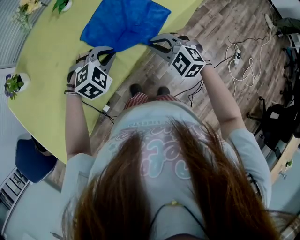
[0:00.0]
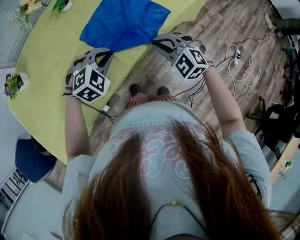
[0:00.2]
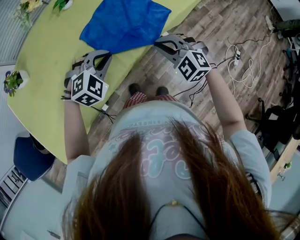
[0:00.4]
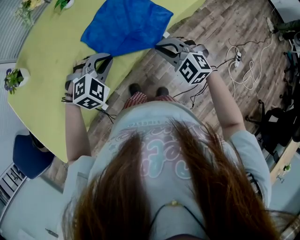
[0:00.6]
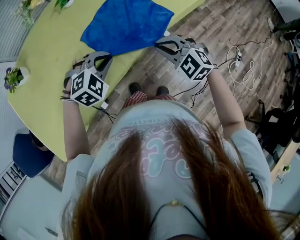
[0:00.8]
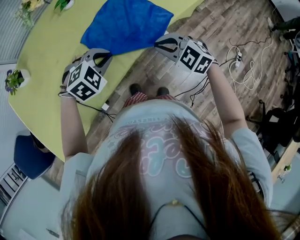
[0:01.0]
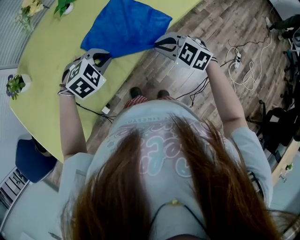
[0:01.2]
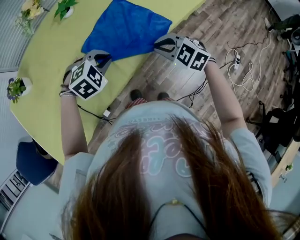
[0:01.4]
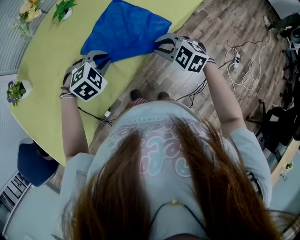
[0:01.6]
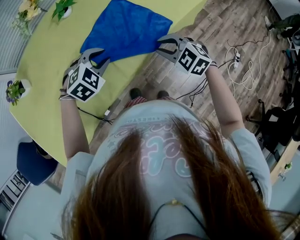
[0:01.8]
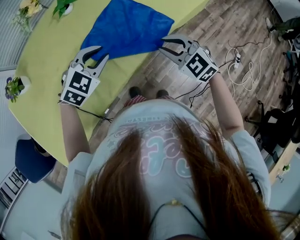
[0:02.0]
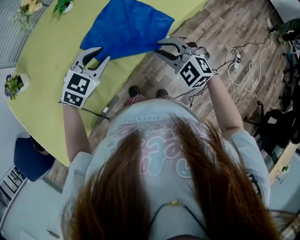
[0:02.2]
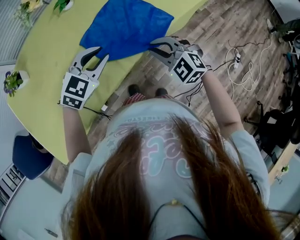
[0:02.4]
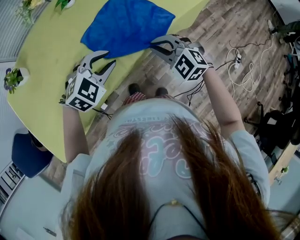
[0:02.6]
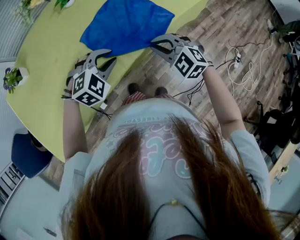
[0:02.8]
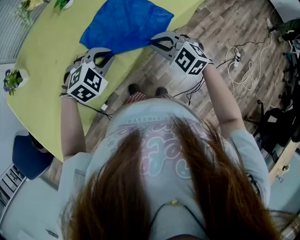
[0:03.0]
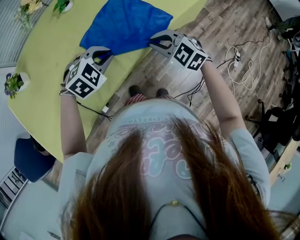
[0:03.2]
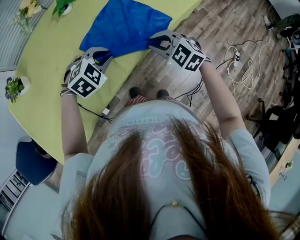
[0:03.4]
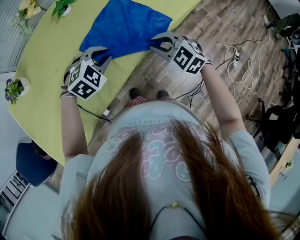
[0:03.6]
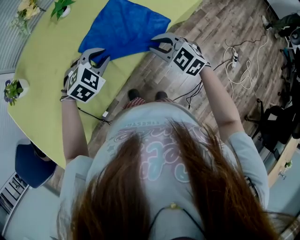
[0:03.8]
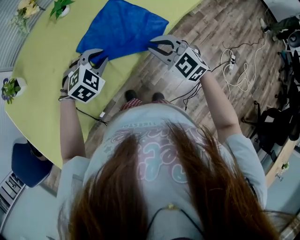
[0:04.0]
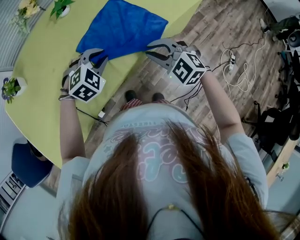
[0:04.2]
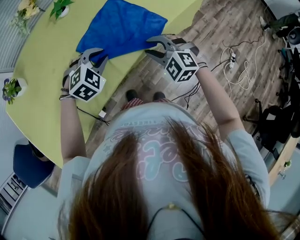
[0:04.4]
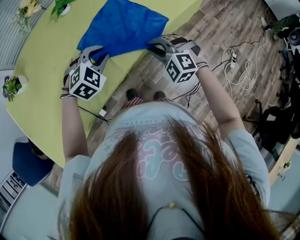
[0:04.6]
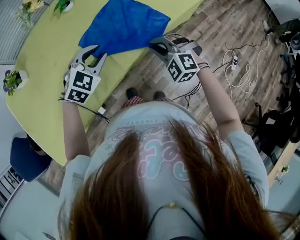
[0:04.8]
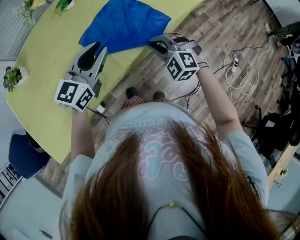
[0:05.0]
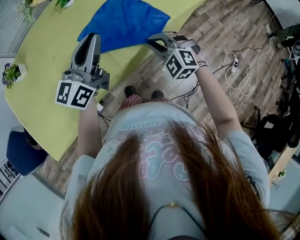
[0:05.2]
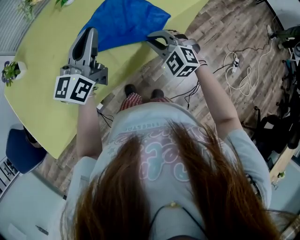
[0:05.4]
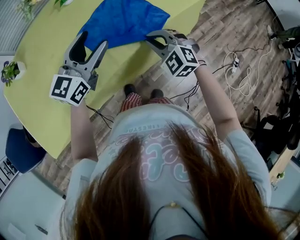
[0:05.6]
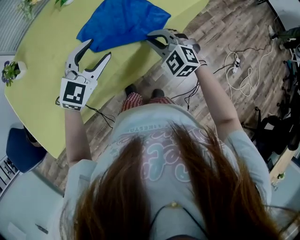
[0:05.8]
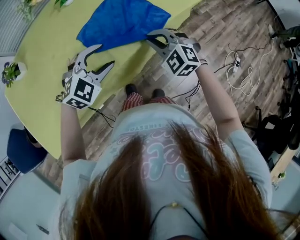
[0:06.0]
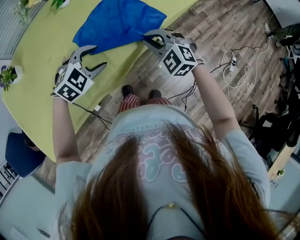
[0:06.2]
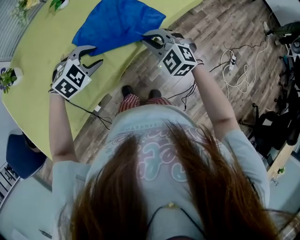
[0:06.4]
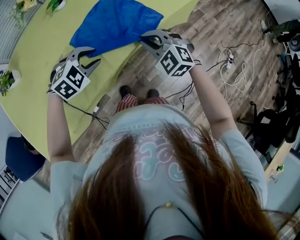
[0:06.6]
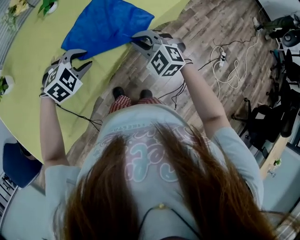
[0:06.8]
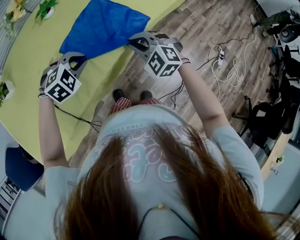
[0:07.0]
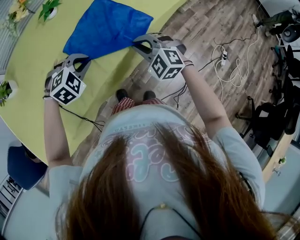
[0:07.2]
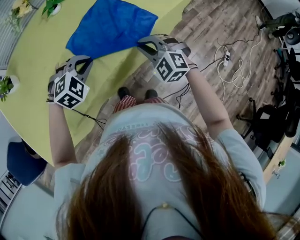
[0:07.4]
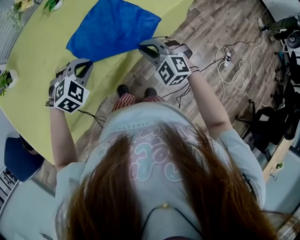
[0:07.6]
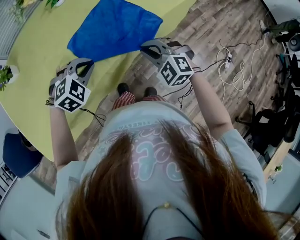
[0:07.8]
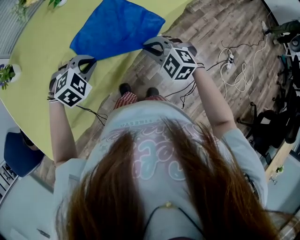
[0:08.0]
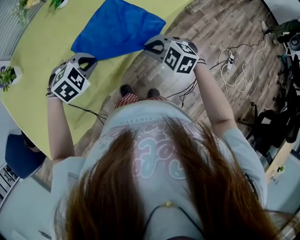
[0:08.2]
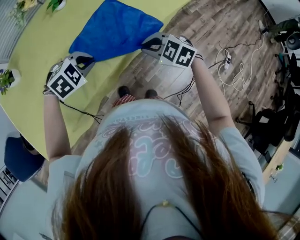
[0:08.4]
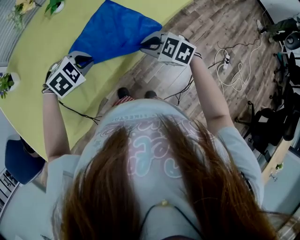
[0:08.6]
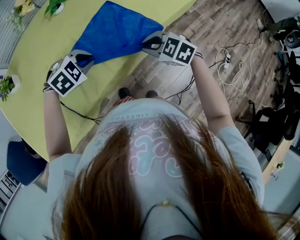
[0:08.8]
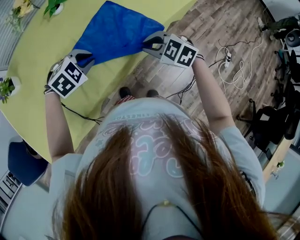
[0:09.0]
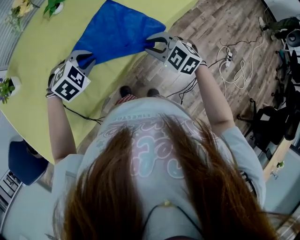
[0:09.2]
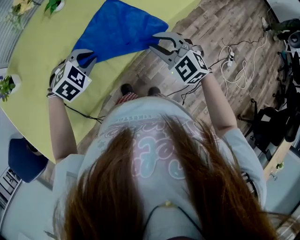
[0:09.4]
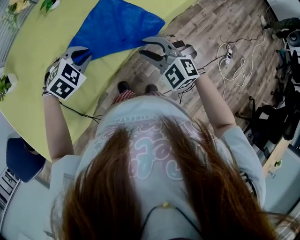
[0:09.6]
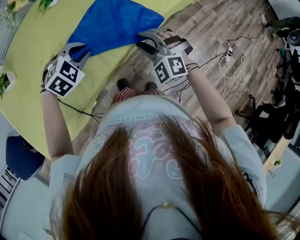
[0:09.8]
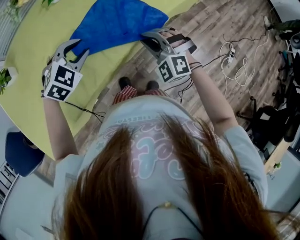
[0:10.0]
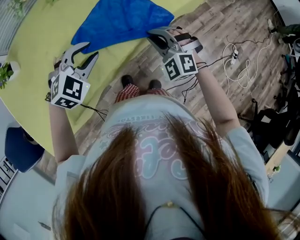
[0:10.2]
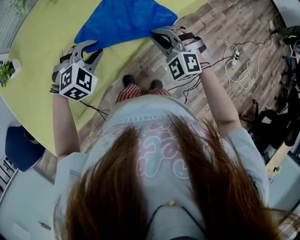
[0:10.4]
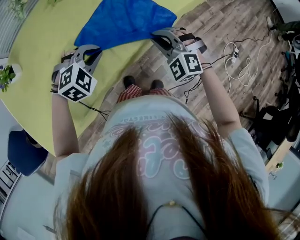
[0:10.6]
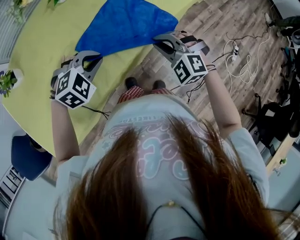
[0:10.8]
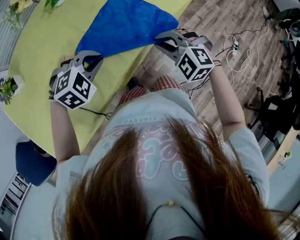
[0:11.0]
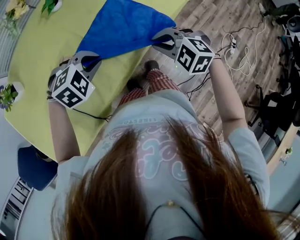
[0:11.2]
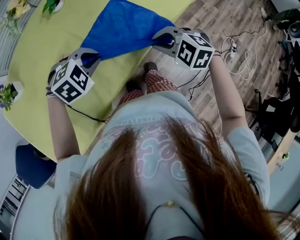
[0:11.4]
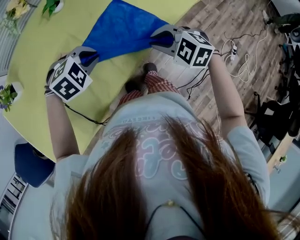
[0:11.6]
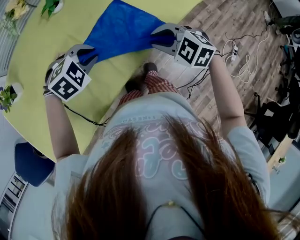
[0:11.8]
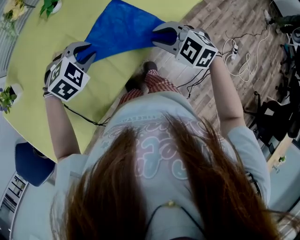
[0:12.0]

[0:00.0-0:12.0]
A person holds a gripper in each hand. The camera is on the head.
0:00.0 to 0:01.6: The grippers move only a little.
0:03.0 to 0:04.4: The right gripper opens up.
0:04.4 to 0:06.0: The right gripper closes. The left gripper goes roughly 5 cm backward, reaches some 15 cm upward, then returns, and opens up.
0:06.0 to 0:07.6: The left gripper shifts by some 5 cm, and closes.
0:07.6 to 0:09.0: The right gripper swivels approximately 30 degrees.
0:09.0 to 0:10.4: The right gripper changes its angle by about 40 degrees, and opens and closes again.
0:10.4 to 0:12.0: The left gripper goes roughly 5 cm forward. Meanwhile the right gripper swivels approximately 30 degrees.

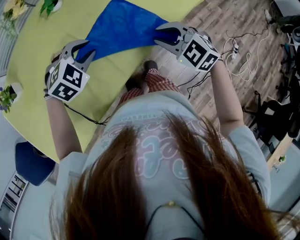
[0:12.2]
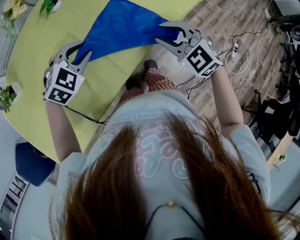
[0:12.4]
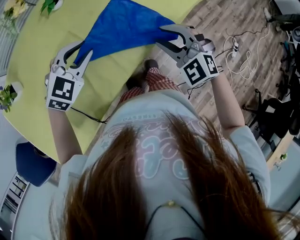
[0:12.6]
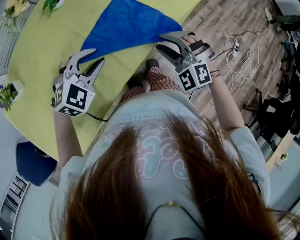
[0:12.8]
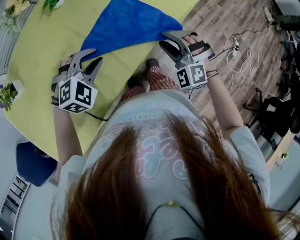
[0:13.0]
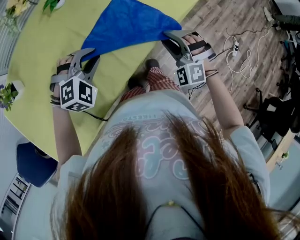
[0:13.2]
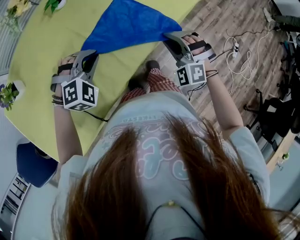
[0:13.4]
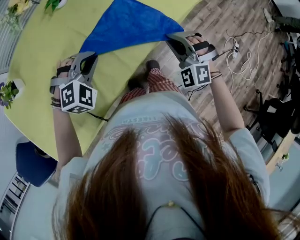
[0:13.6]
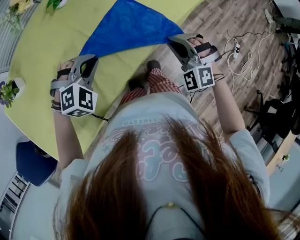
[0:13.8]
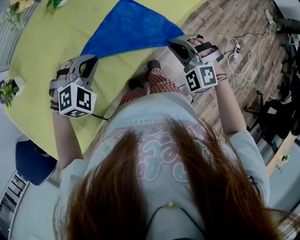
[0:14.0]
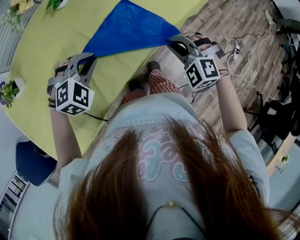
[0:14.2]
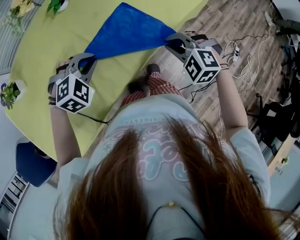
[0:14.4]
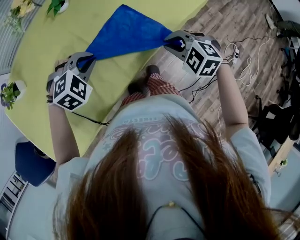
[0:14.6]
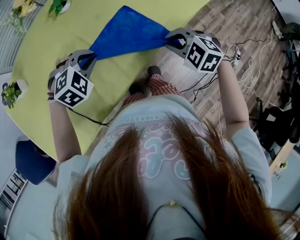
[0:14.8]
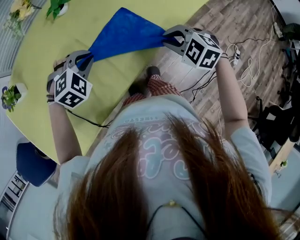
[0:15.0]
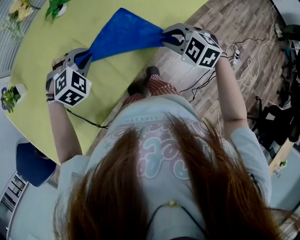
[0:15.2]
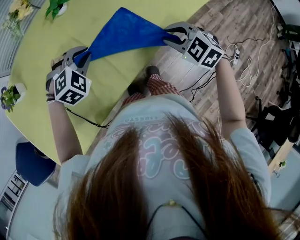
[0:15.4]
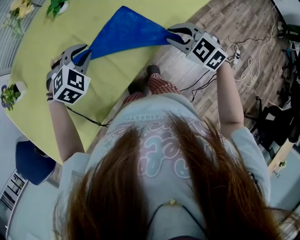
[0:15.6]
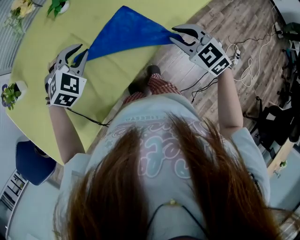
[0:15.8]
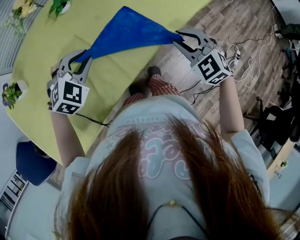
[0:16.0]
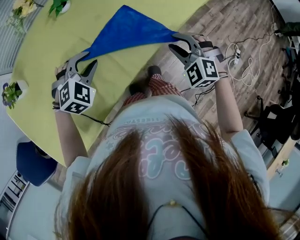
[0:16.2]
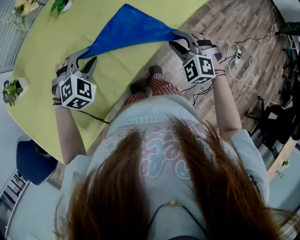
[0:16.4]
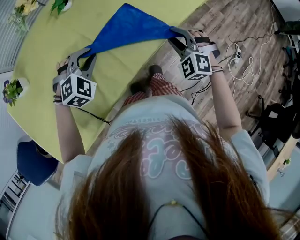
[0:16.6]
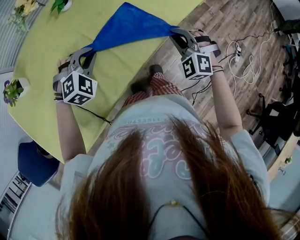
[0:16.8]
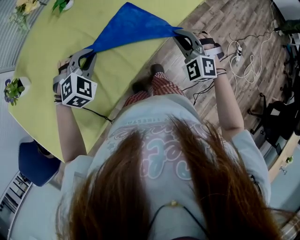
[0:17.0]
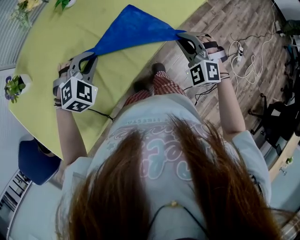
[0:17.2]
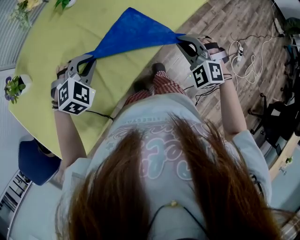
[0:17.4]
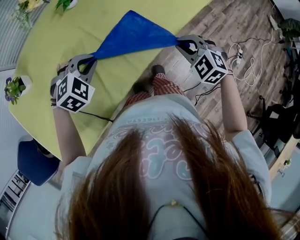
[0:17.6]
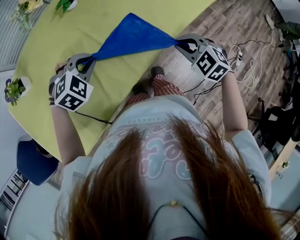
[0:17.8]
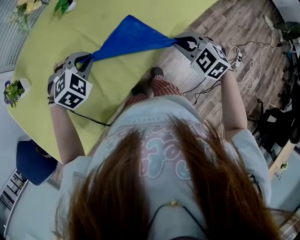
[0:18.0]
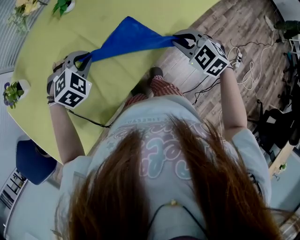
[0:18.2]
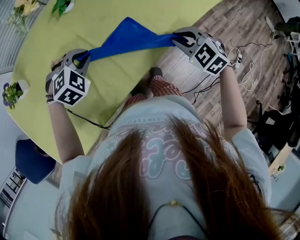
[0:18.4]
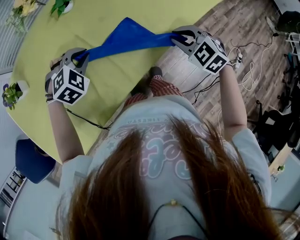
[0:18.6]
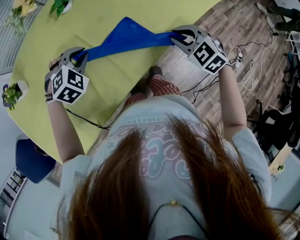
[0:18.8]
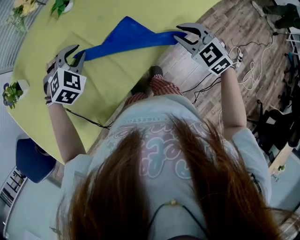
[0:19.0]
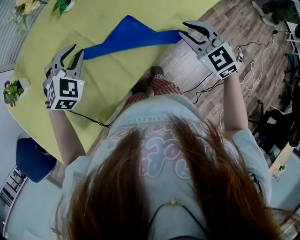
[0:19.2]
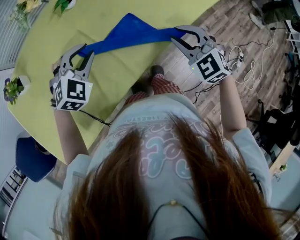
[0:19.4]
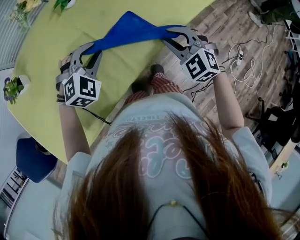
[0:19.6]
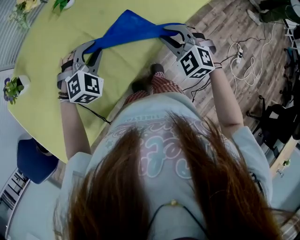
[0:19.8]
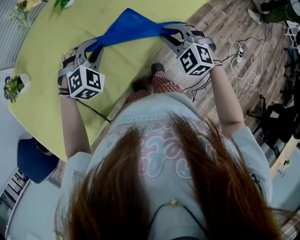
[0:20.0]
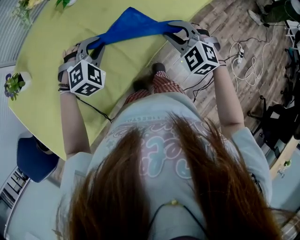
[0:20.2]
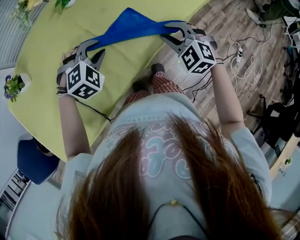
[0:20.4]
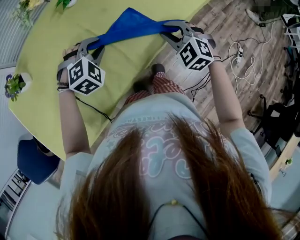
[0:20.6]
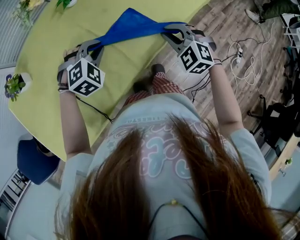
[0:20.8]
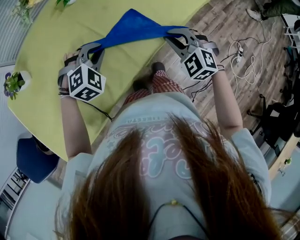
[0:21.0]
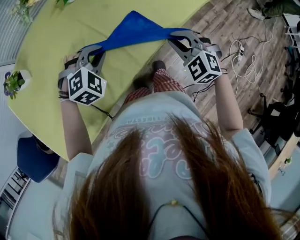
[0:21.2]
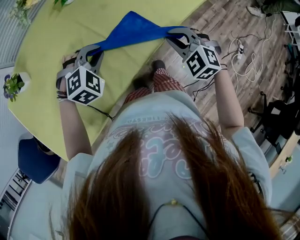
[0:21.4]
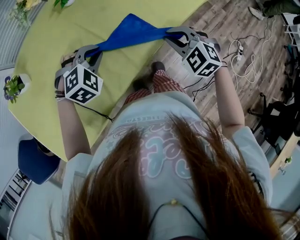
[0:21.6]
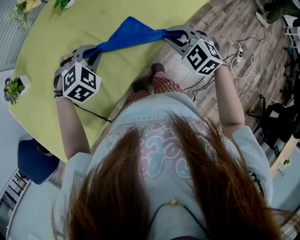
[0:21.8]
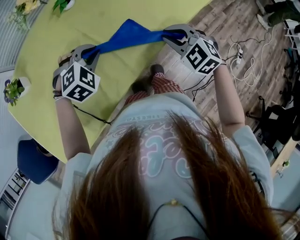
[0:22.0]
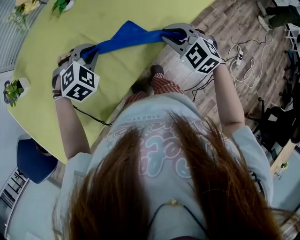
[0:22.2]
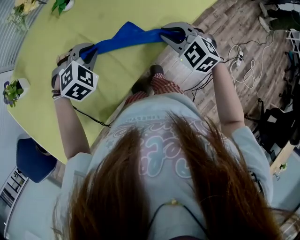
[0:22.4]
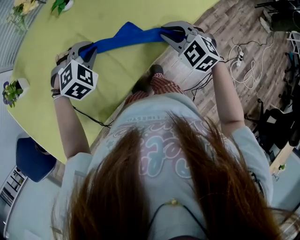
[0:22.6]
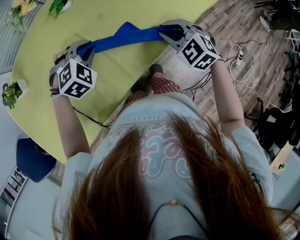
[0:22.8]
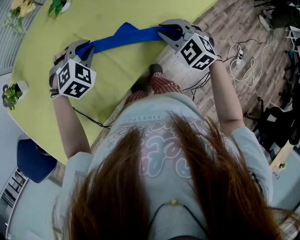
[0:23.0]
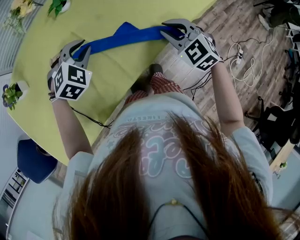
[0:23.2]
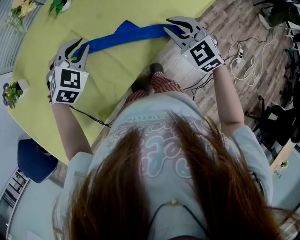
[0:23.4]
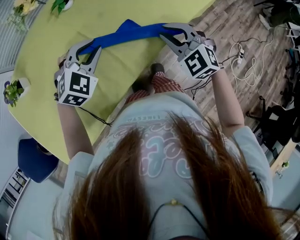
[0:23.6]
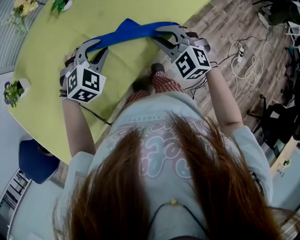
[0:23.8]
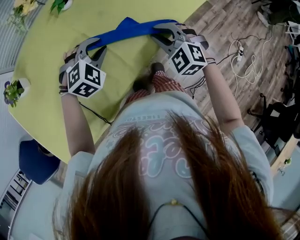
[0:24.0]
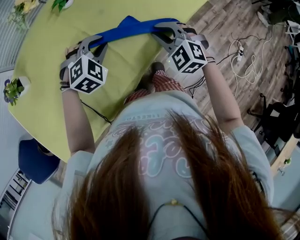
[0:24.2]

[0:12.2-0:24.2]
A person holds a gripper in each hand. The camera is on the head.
0:12.2 to 0:13.8: The left gripper is displaced backward by about 5 cm. The right gripper swivels approximately 40 degrees.
0:13.8 to 0:15.2: Both grippers travel together forward, some 5 cm. The right gripper changes its angle by some 40 degrees.
0:15.2 to 0:16.6: The right gripper turns by about 30 degrees.
0:16.6 to 0:18.2: The right gripper changes its angle by some 30 degrees.
0:18.2 to 0:19.8: The grippers make only small movements.
0:19.8 to 0:21.2: The grippers move only a little.
0:21.2 to 0:22.6: The two grippers go some 5 cm forward.
0:22.6 to 0:24.2: The grippers stay close to where they were, moving slightly.
